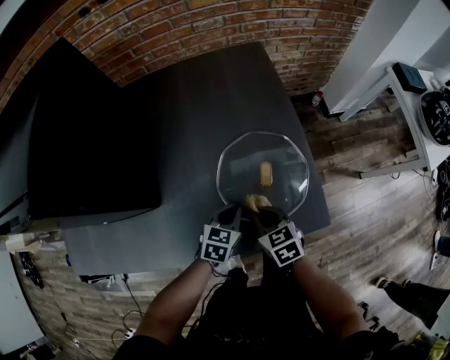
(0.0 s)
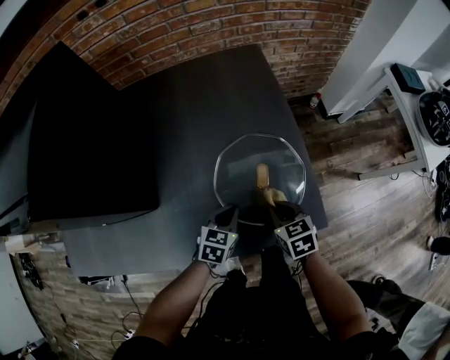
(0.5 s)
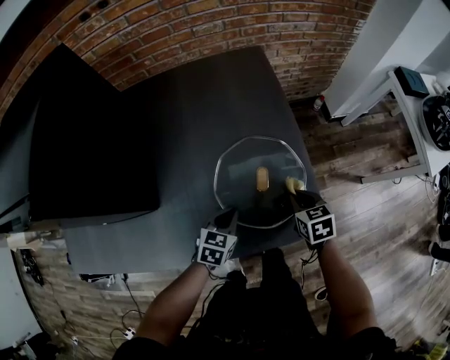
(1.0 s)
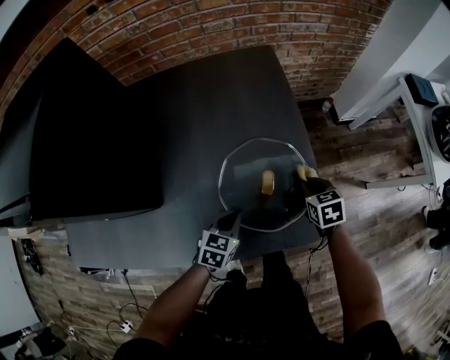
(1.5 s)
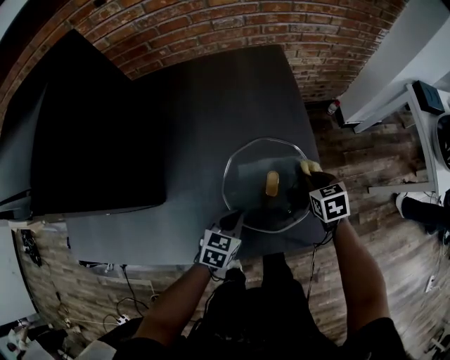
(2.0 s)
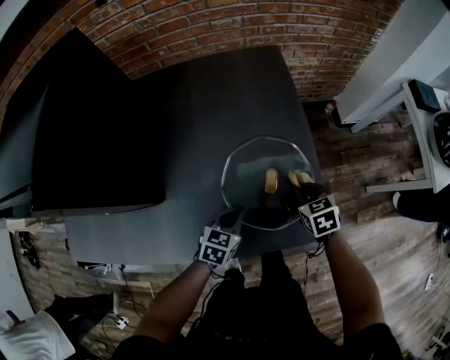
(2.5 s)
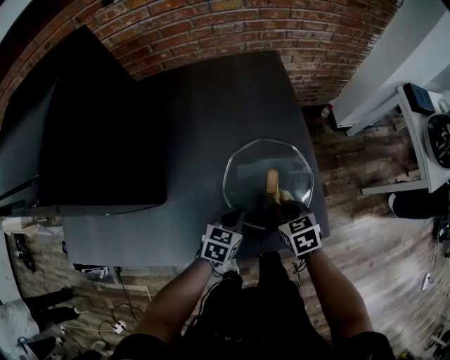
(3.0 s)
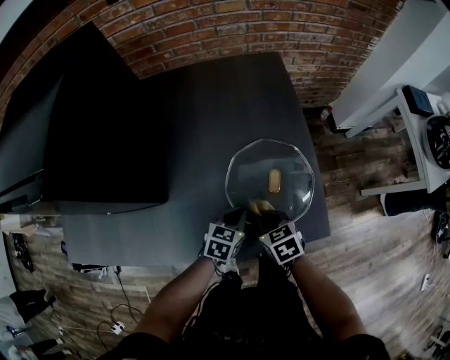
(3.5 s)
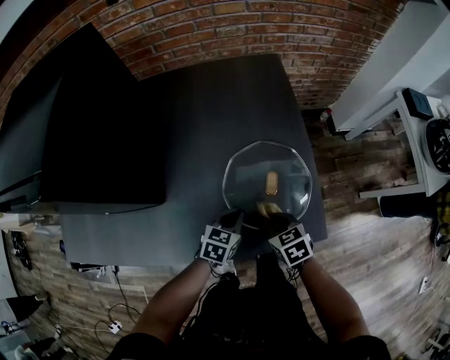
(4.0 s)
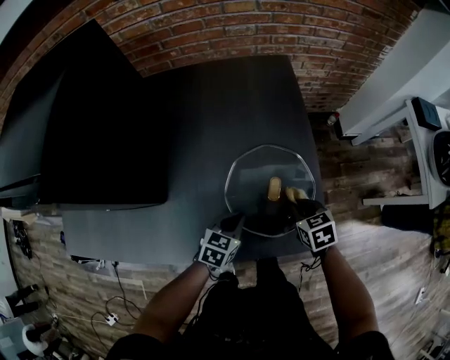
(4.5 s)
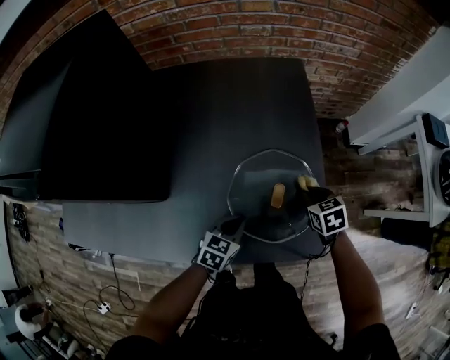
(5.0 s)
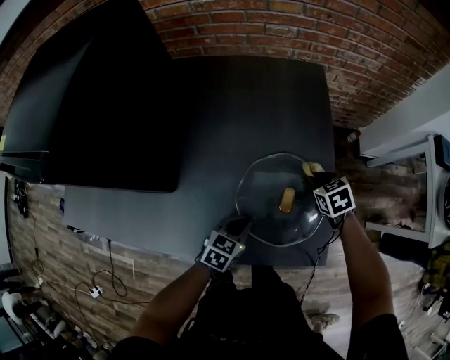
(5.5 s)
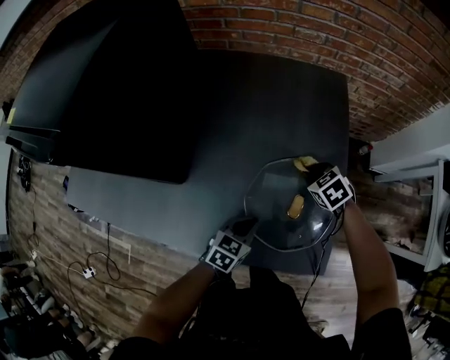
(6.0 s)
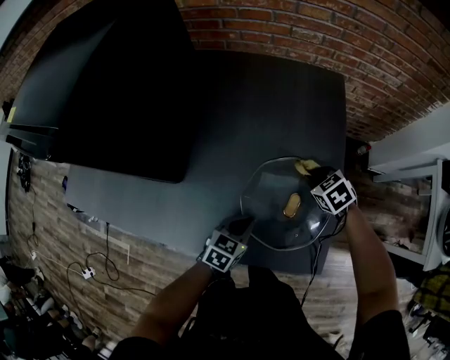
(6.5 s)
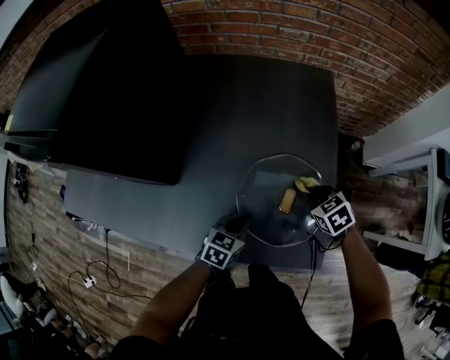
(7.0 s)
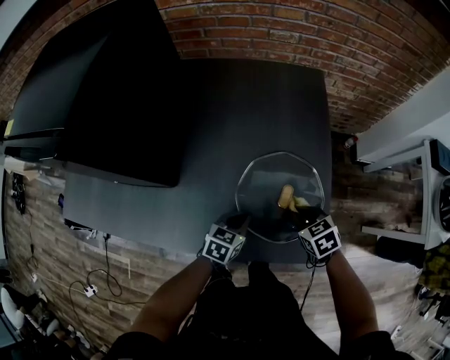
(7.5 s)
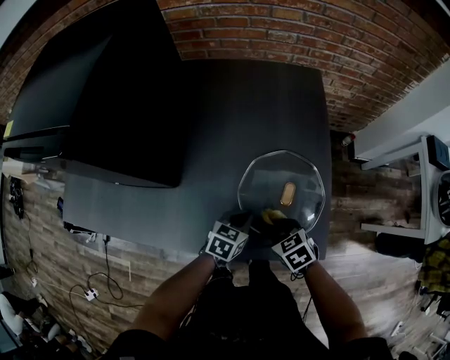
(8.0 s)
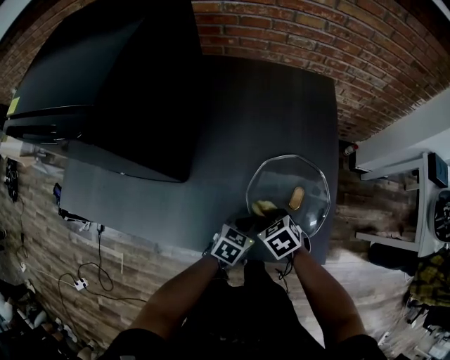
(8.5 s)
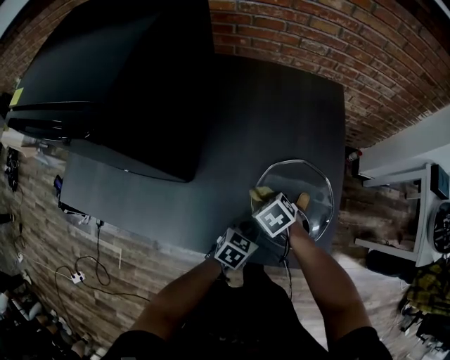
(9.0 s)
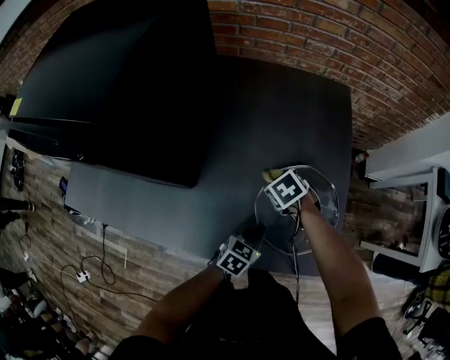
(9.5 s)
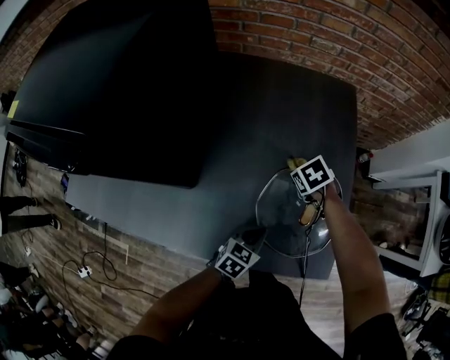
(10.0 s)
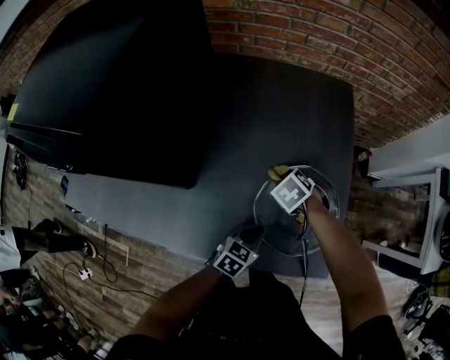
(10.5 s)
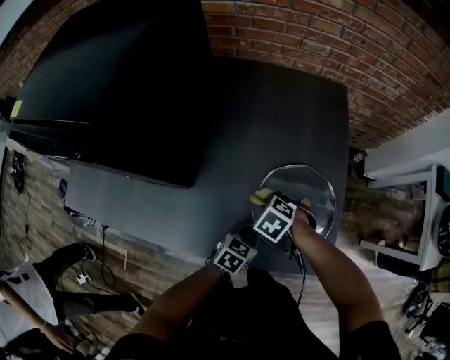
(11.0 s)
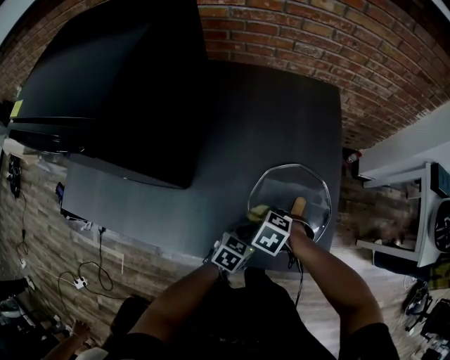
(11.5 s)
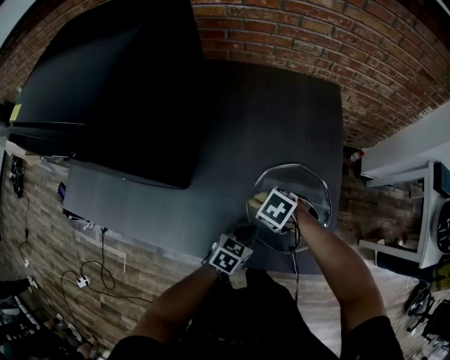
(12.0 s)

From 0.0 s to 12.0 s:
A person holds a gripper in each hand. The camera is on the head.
From 0.0 s to 2.0 s: The right gripper is displaced to the right and forward by some 20 cm.
From 2.0 s to 4.0 s: The right gripper moves backward and to the left, roughly 20 cm.
From 4.0 s to 6.0 s: The right gripper goes some 20 cm forward, and swivels approximately 30 degrees.
From 6.0 s to 8.0 s: The right gripper is displaced backward by approximately 20 cm.
From 8.0 s to 10.0 s: The right gripper ends up about 20 cm from where it was.
From 10.0 s to 12.0 s: The right gripper shifts by roughly 15 cm, and changes its angle by about 30 degrees.

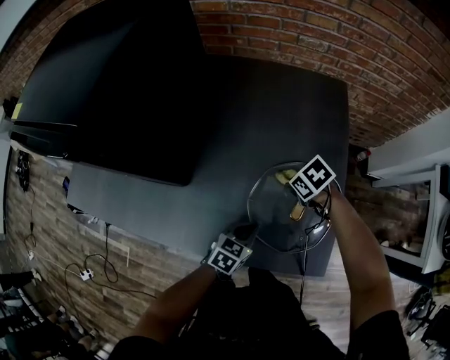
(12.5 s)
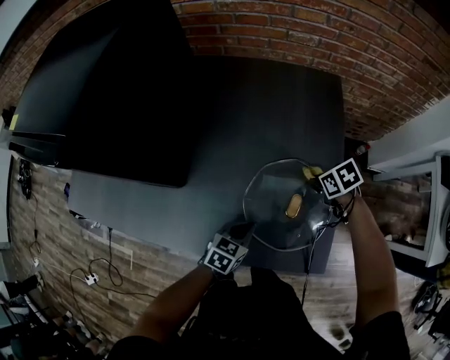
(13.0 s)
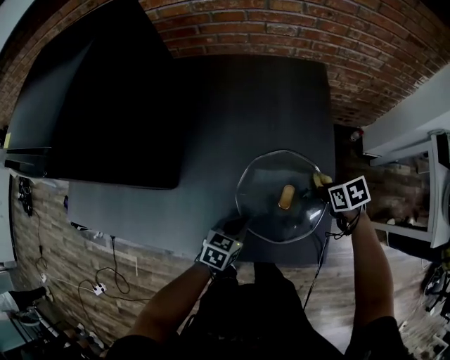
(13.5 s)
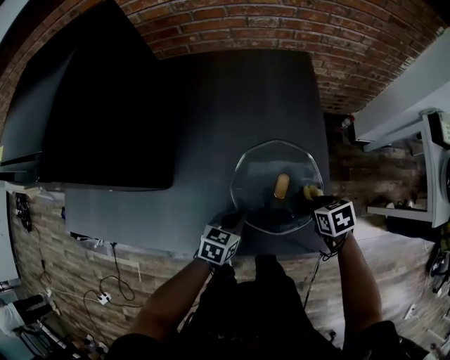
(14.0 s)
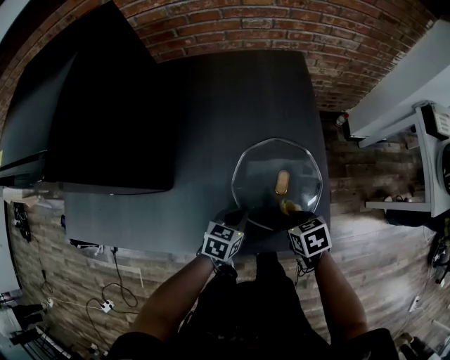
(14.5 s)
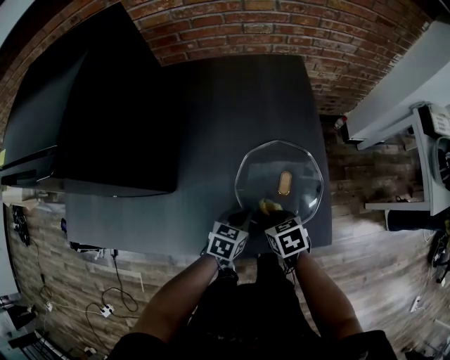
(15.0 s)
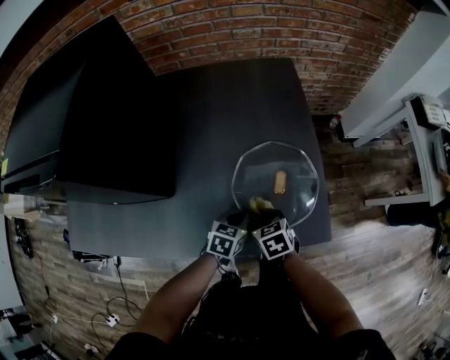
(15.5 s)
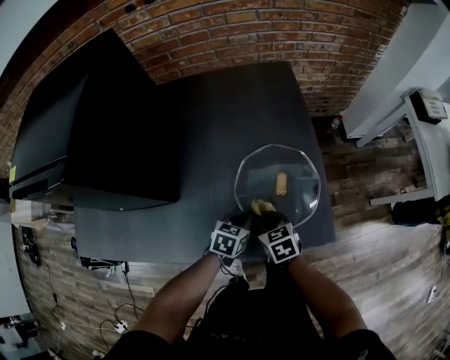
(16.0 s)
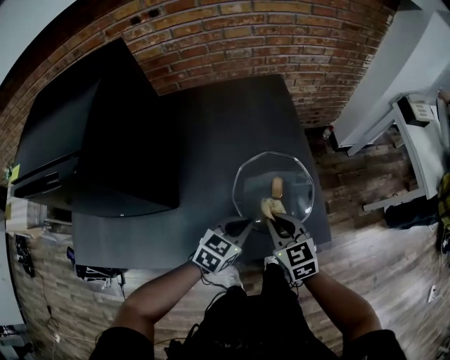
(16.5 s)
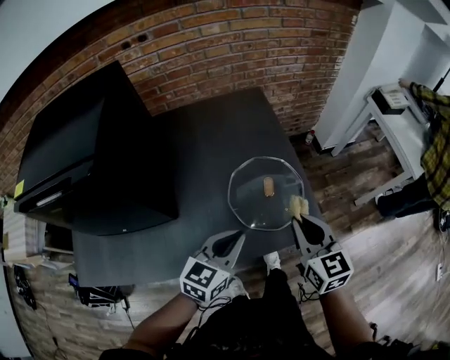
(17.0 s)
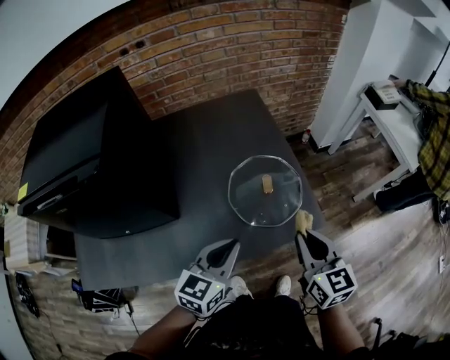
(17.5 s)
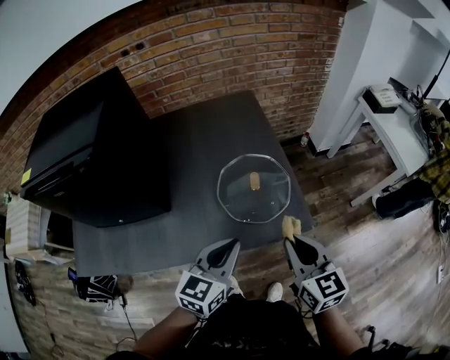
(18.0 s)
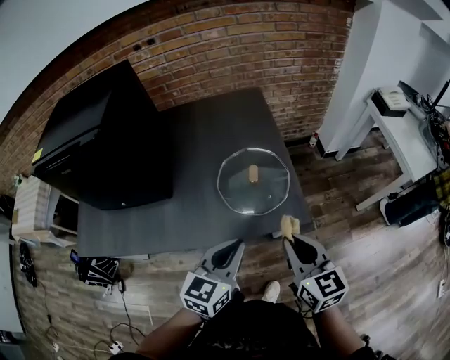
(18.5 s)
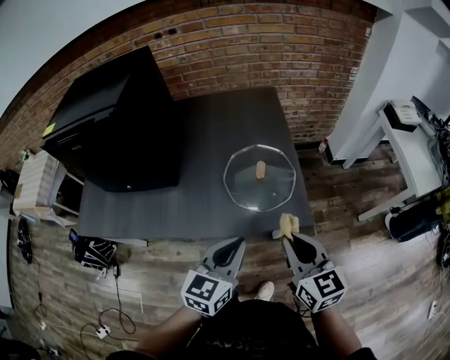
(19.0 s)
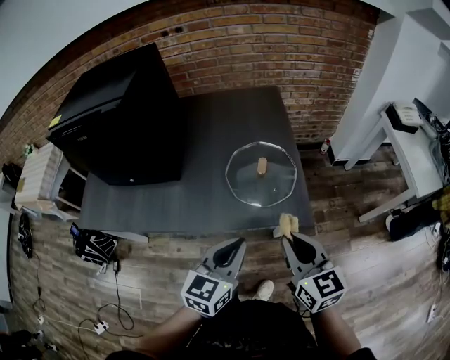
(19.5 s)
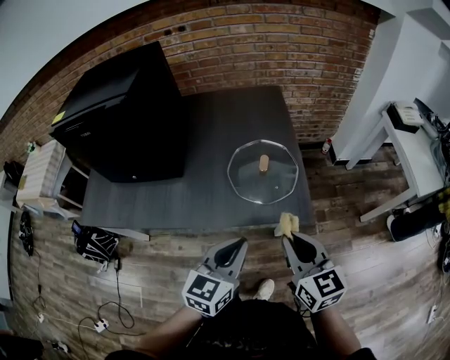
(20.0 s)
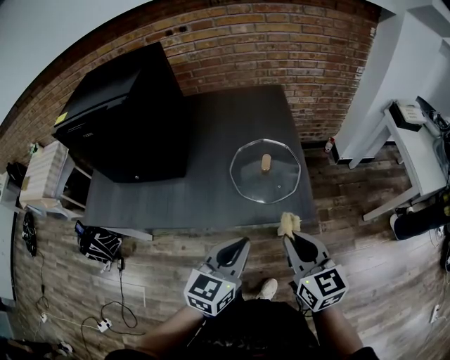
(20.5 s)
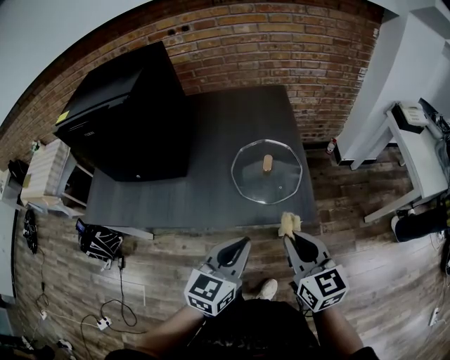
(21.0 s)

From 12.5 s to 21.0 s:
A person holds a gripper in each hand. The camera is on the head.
From 12.5 s to 14.5 s: The right gripper shifts by approximately 20 cm, and rotates roughly 30 degrees.
From 14.5 s to 16.5 s: The right gripper goes about 15 cm upward and to the left, and tips its fingers upward by about 30 degrees. The left gripper is displaced upward by approximately 10 cm, and swivels approximately 20 degrees.
From 16.5 s to 19.0 s: Both grippers move backward, upward and to the right, about 25 cm. The left gripper rotates about 30 degrees.
From 19.0 s to 21.0 s: There are only small adjustments of the grippers.

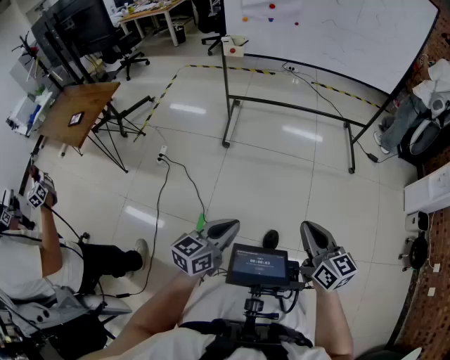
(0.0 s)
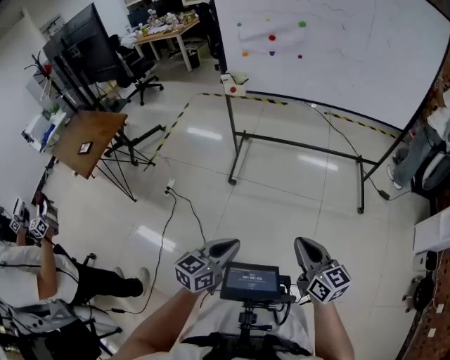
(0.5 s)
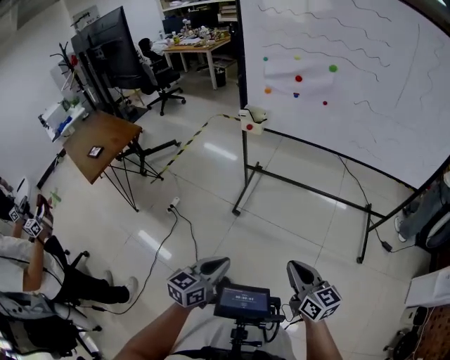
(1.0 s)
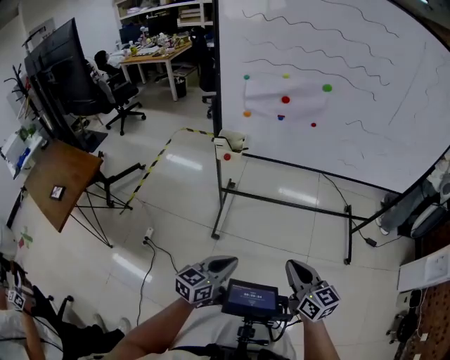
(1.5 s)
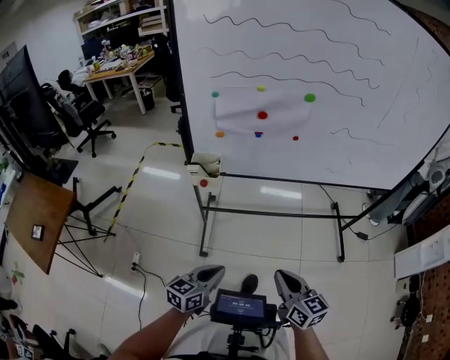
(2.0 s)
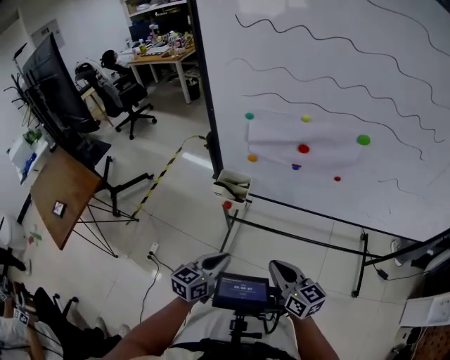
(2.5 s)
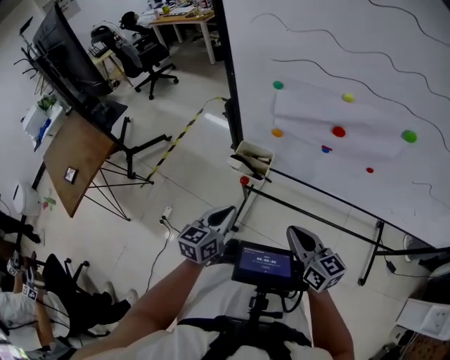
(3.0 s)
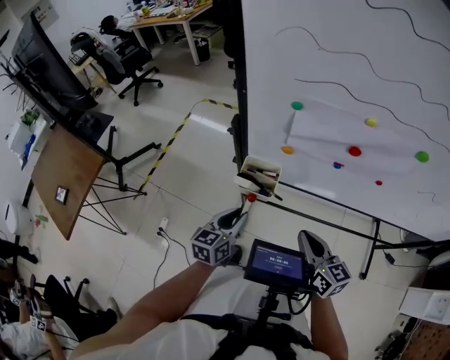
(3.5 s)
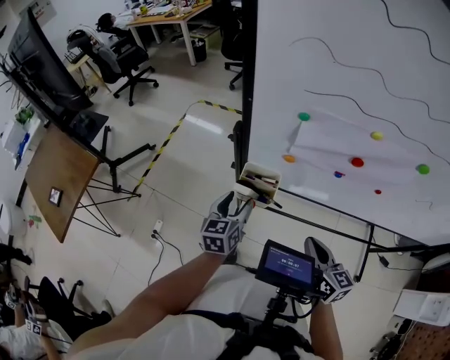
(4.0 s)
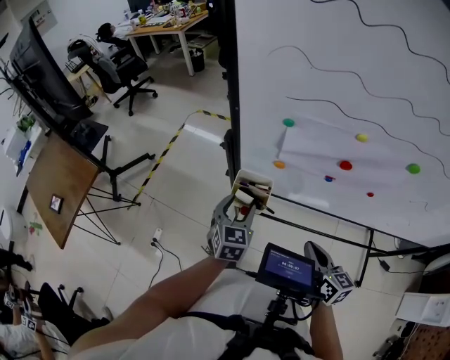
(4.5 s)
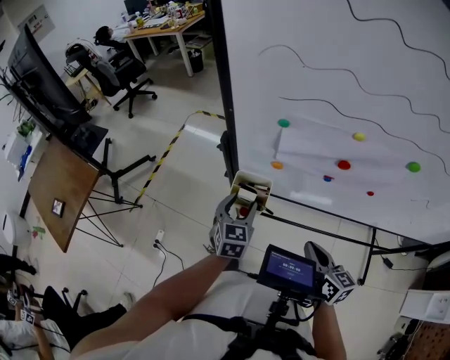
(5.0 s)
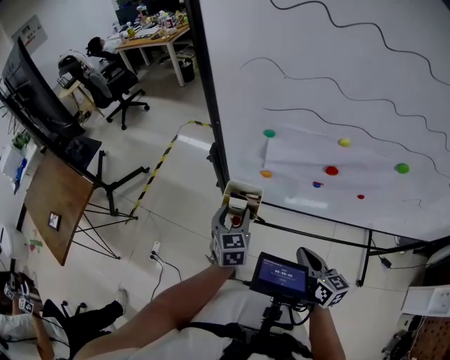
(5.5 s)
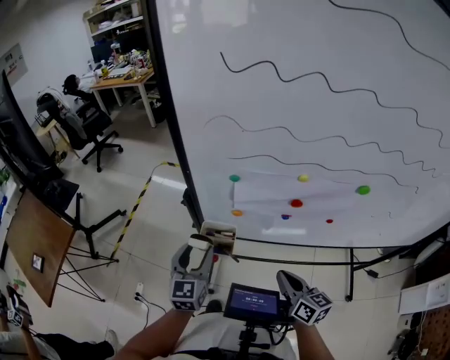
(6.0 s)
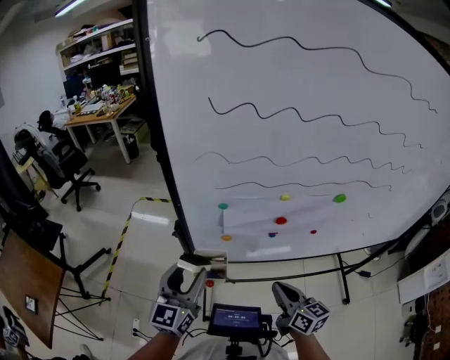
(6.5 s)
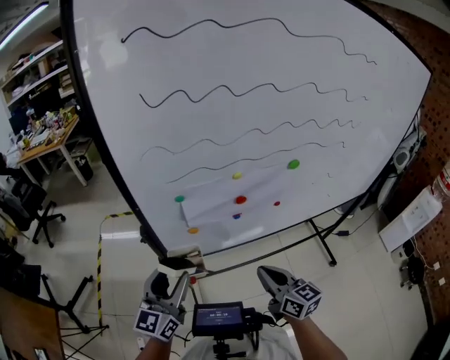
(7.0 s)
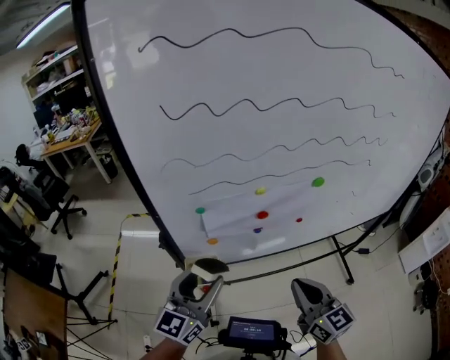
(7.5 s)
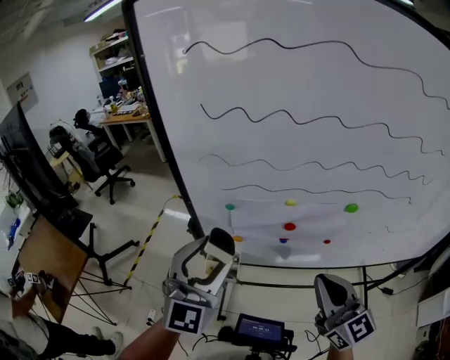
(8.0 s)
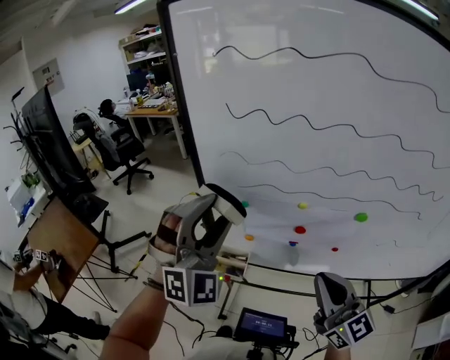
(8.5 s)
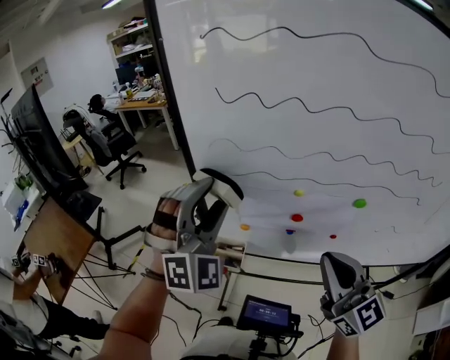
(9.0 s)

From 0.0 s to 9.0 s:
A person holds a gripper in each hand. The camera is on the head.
From 0.0 s to 2.0 s: Both grippers are carried forward, approximately 70 cm.
From 2.0 s to 4.5 s: The left gripper changes place by approximately 40 cm, turns by some 50 degrees, and opens up. The right gripper changes place by approximately 35 cm.
From 4.5 s to 7.0 s: The right gripper heads upward, covering roughly 10 cm, and rotates roughly 20 degrees, while the left gripper heads upward, covering roughly 20 cm, and angles its fingers upward, by approximately 30 degrees.
From 7.0 s to 9.0 s: Both grippers move upward, some 20 cm. The right gripper swivels some 40 degrees, while the left gripper twists about 80 degrees clockwise, seen from behind.
